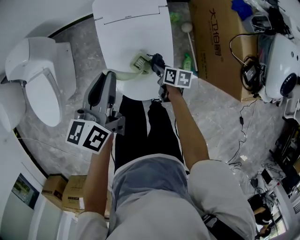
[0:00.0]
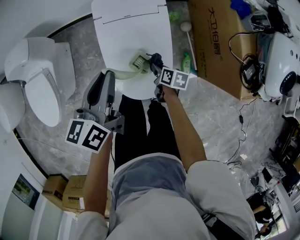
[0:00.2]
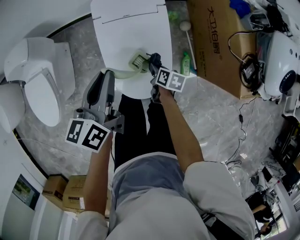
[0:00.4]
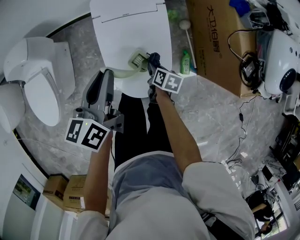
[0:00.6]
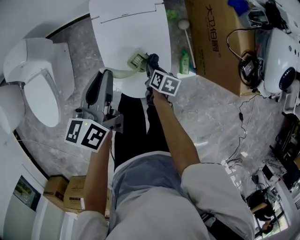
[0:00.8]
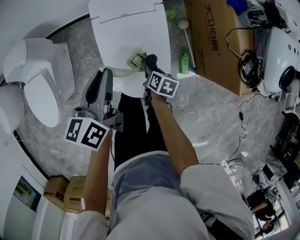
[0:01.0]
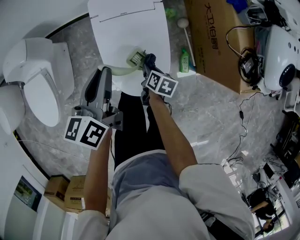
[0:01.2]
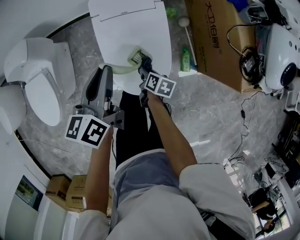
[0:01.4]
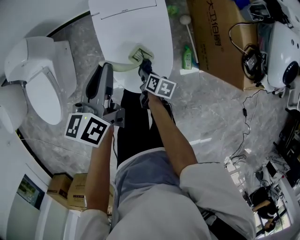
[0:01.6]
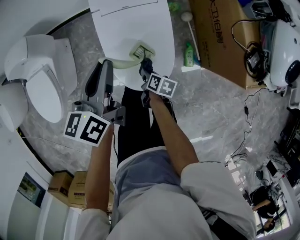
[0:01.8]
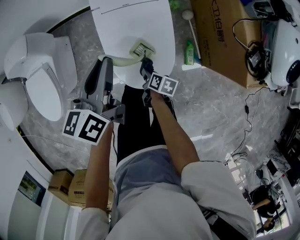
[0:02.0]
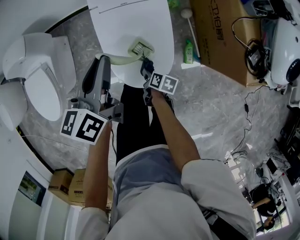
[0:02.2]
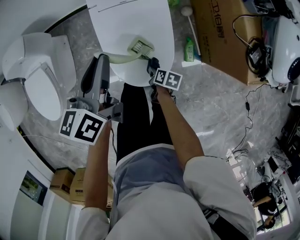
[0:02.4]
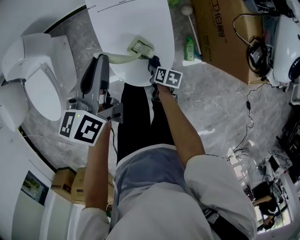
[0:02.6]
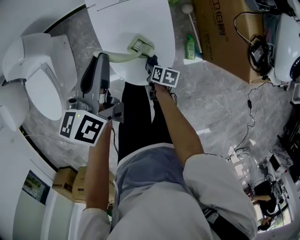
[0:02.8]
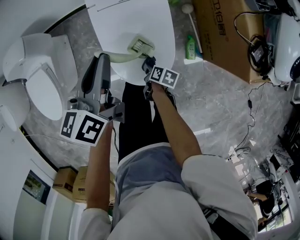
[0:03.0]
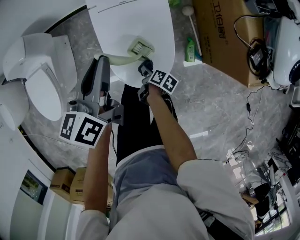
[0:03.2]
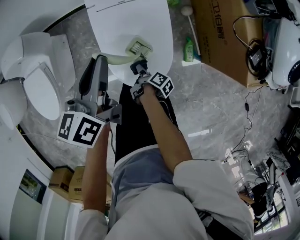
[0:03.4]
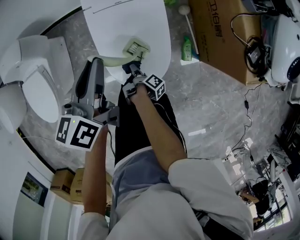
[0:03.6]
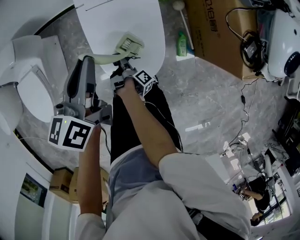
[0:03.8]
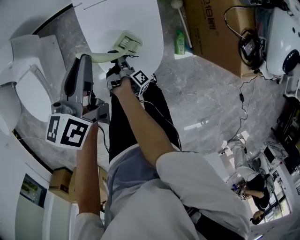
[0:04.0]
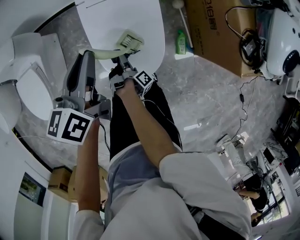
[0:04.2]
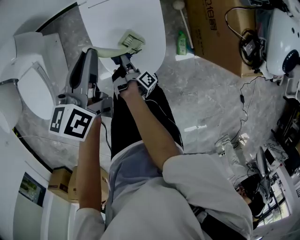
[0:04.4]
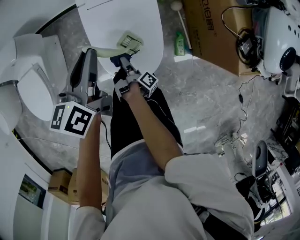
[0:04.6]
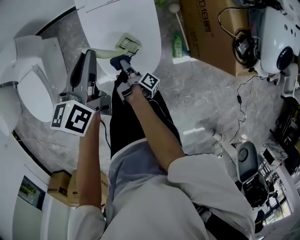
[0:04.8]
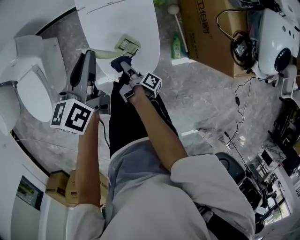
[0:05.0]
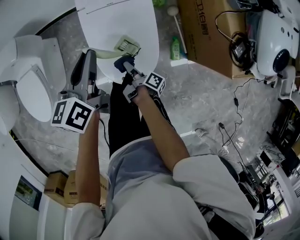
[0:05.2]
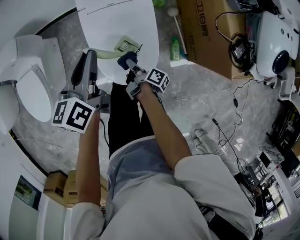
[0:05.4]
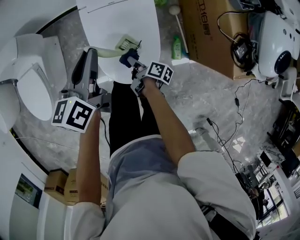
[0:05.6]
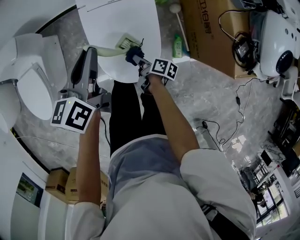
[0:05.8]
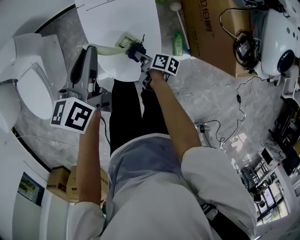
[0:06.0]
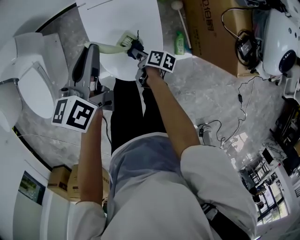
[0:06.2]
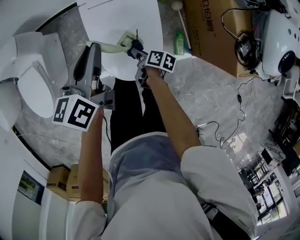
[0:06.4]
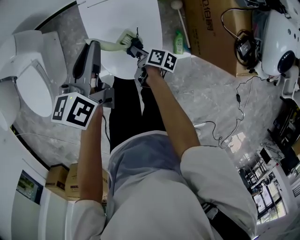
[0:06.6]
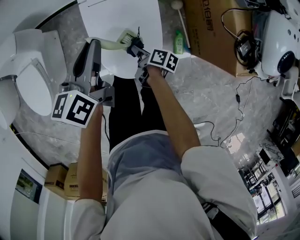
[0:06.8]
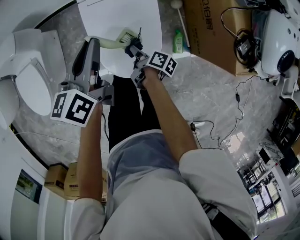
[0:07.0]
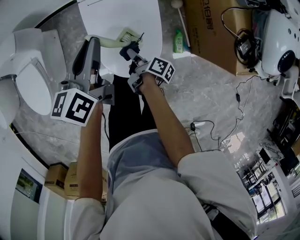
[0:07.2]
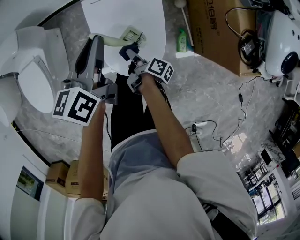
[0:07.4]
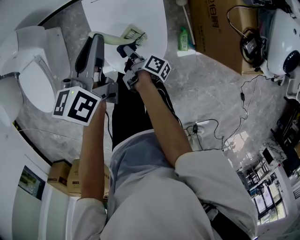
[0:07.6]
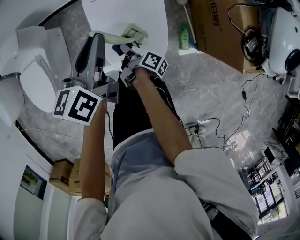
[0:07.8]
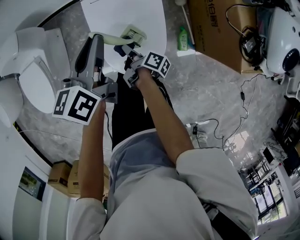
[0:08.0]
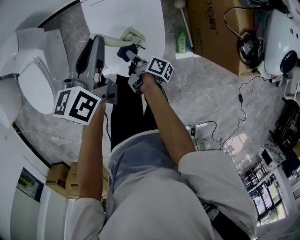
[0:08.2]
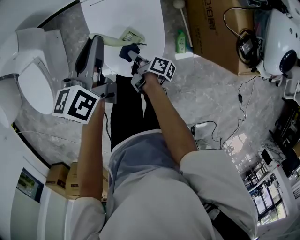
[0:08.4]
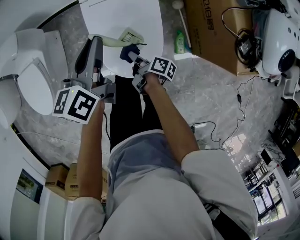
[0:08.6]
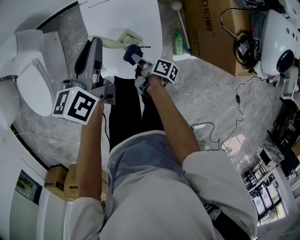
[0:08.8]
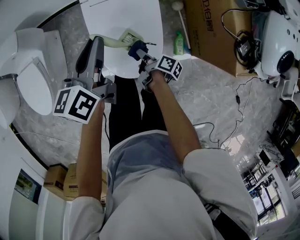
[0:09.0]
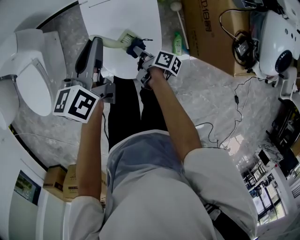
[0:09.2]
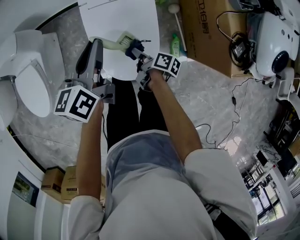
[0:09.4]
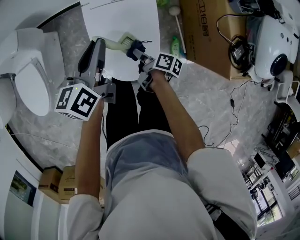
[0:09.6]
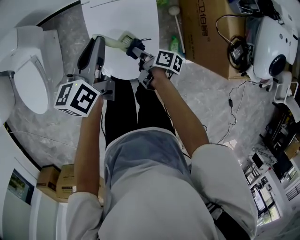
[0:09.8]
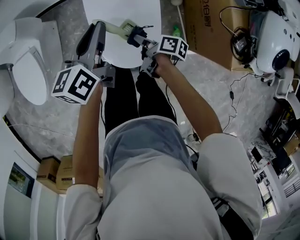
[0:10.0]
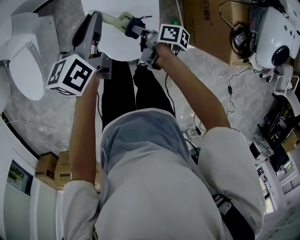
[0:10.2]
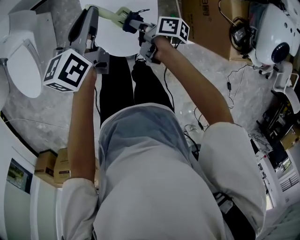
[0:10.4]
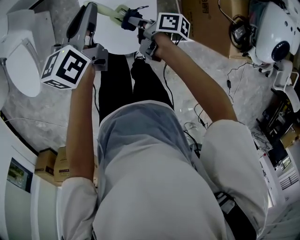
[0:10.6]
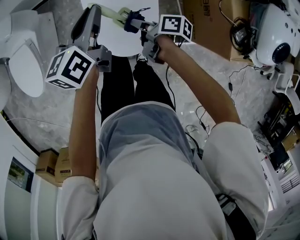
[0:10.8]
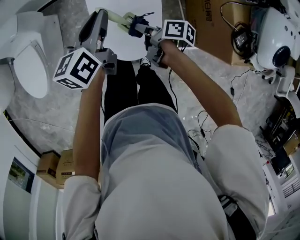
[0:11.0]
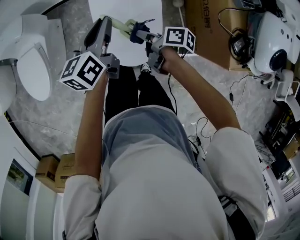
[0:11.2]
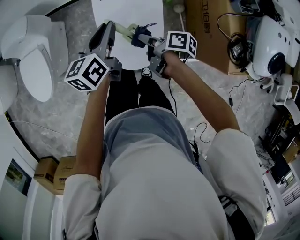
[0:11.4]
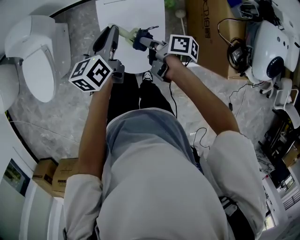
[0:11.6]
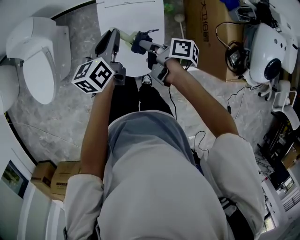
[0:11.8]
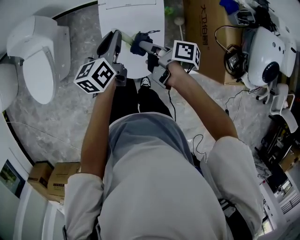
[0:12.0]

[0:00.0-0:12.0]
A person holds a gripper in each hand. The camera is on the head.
0:00.0 to 0:01.6: The right gripper is displaced to the left and backward by approximately 10 cm.
0:01.6 to 0:03.0: The right gripper travels downward by about 5 cm.
0:03.0 to 0:04.4: The right gripper moves to the left, approximately 5 cm, and twists some 60 degrees clockwise, seen from behind.
0:04.4 to 0:06.0: The right gripper is displaced to the right by about 10 cm, and rolls counterclockwise, seen from behind, by approximately 50 degrees.
0:06.0 to 0:07.6: The right gripper moves to the left, some 5 cm, and changes its angle by about 30 degrees.
0:07.6 to 0:09.0: The right gripper is displaced to the right by some 5 cm.
0:09.0 to 0:10.4: The right gripper travels upward by roughly 10 cm, and turns by roughly 20 degrees.
0:10.4 to 0:12.0: The right gripper shifts about 15 cm upward.

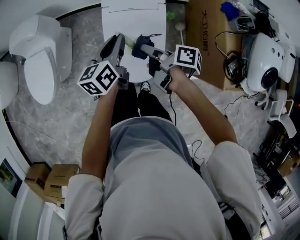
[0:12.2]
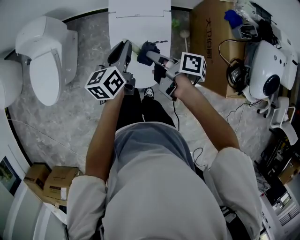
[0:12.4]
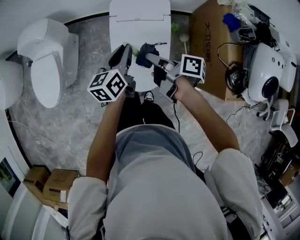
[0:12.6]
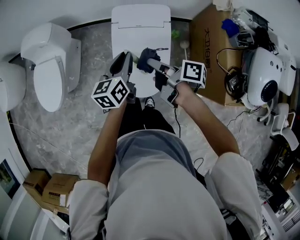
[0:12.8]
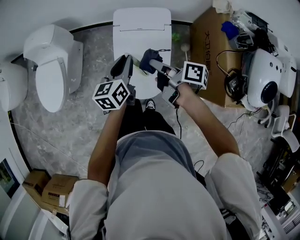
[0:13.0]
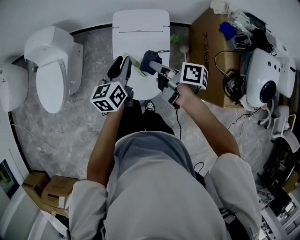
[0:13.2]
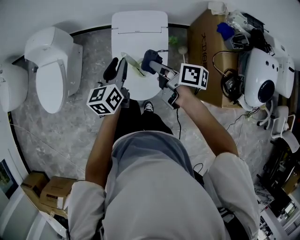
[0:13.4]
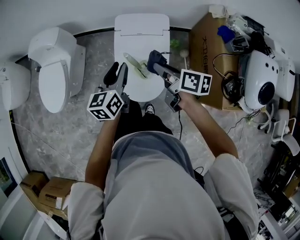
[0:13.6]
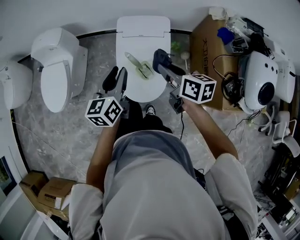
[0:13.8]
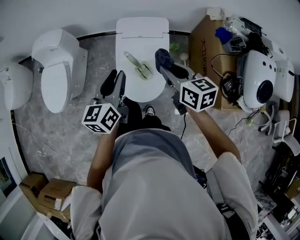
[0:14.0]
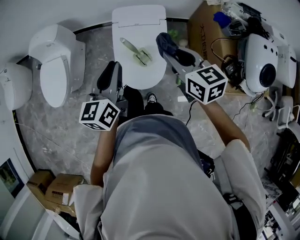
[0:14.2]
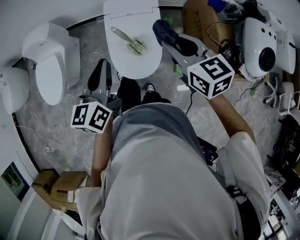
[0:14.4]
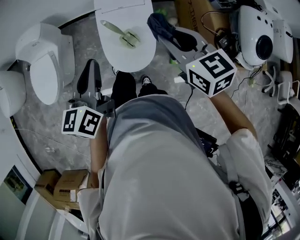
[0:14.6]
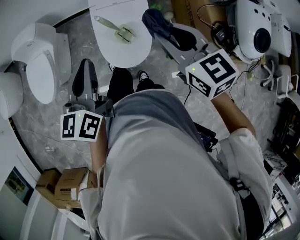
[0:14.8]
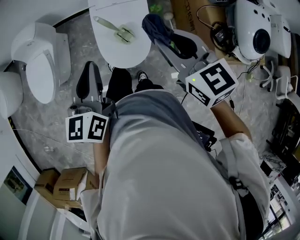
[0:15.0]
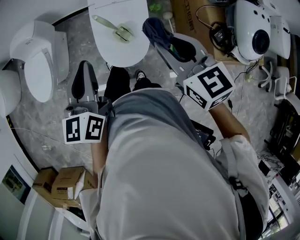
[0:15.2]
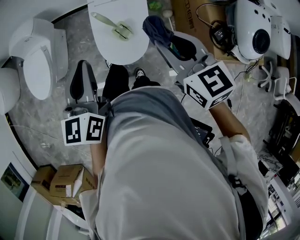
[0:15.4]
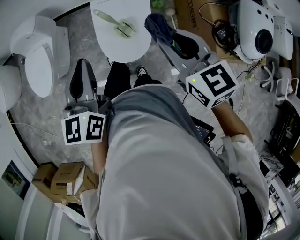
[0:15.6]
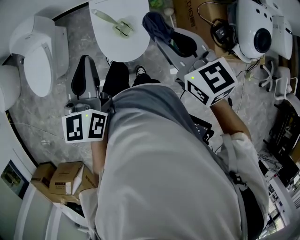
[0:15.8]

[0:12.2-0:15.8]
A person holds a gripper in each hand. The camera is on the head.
0:12.2 to 0:14.0: The right gripper is displaced upward by about 15 cm, and twists roughly 60 degrees counterclockwise, seen from behind. Meanwhile the left gripper heads upward and backward, covering approximately 15 cm.
0:14.0 to 0:15.8: The grippers both shift backward and upward by about 15 cm.

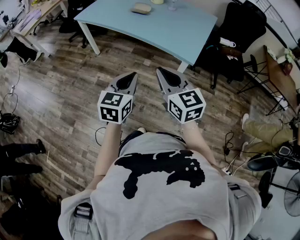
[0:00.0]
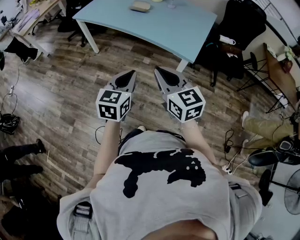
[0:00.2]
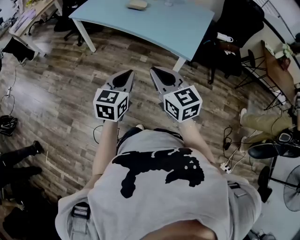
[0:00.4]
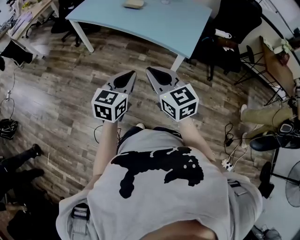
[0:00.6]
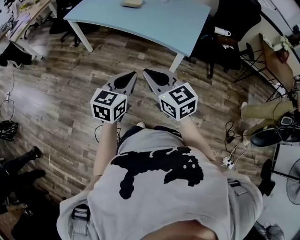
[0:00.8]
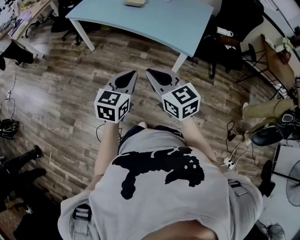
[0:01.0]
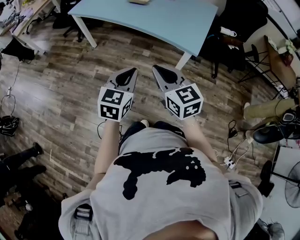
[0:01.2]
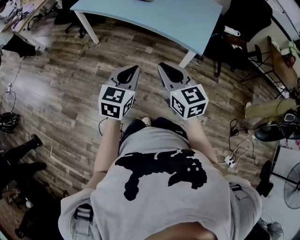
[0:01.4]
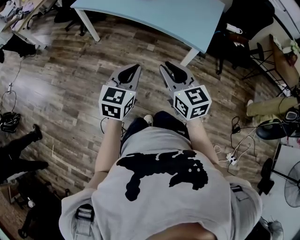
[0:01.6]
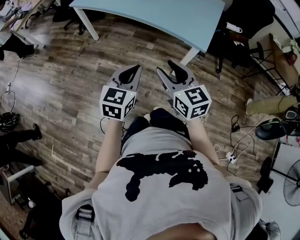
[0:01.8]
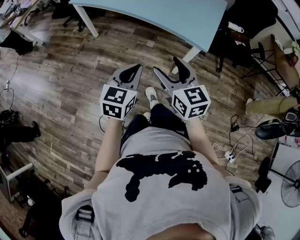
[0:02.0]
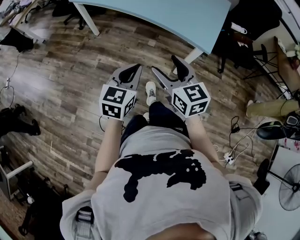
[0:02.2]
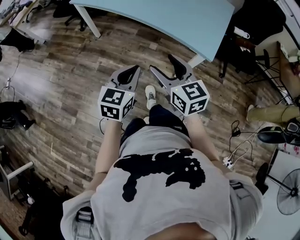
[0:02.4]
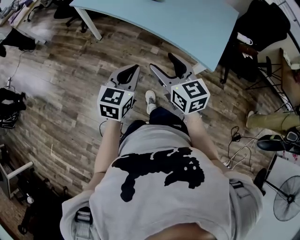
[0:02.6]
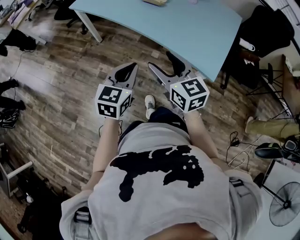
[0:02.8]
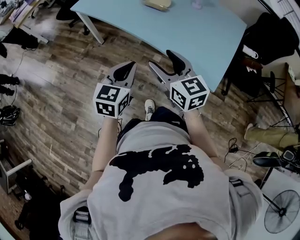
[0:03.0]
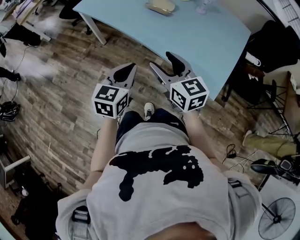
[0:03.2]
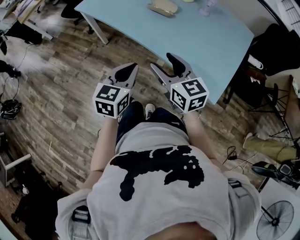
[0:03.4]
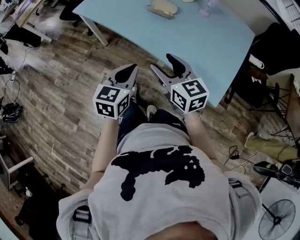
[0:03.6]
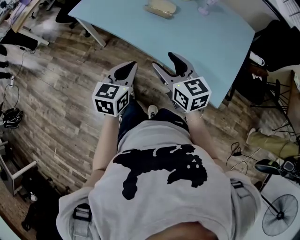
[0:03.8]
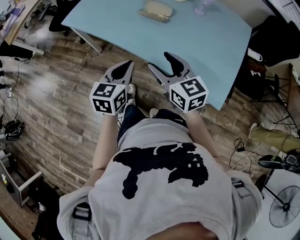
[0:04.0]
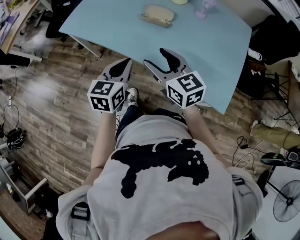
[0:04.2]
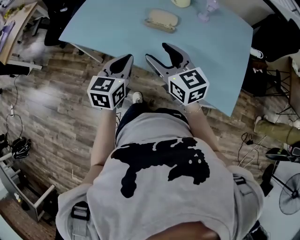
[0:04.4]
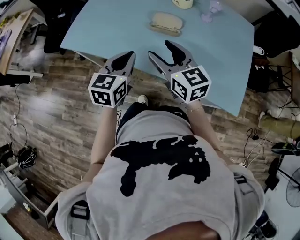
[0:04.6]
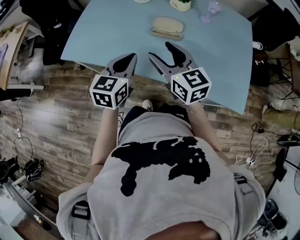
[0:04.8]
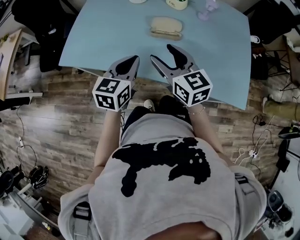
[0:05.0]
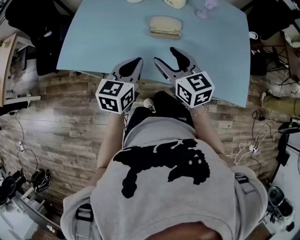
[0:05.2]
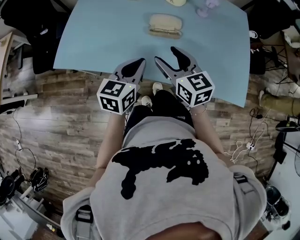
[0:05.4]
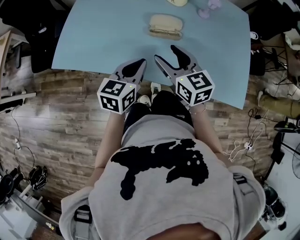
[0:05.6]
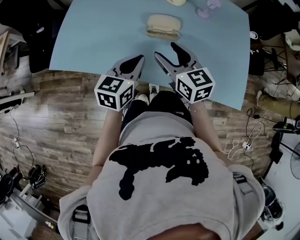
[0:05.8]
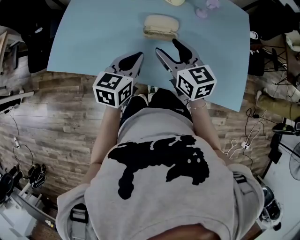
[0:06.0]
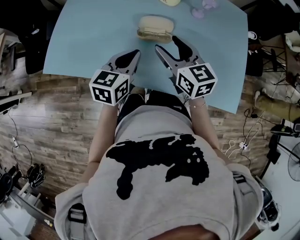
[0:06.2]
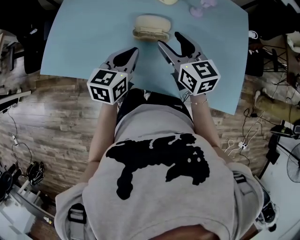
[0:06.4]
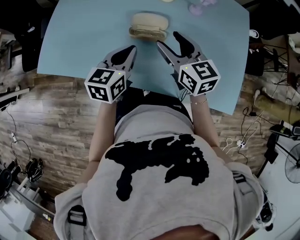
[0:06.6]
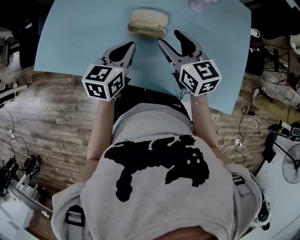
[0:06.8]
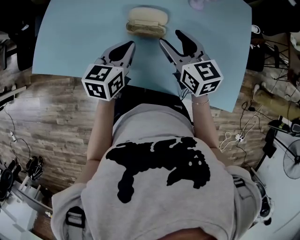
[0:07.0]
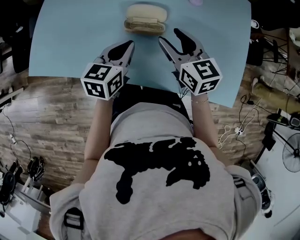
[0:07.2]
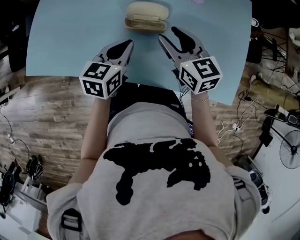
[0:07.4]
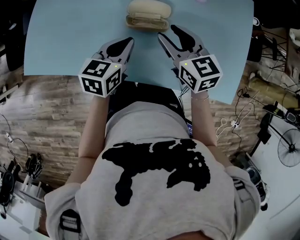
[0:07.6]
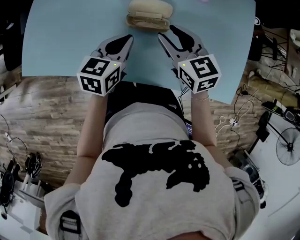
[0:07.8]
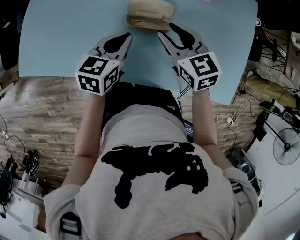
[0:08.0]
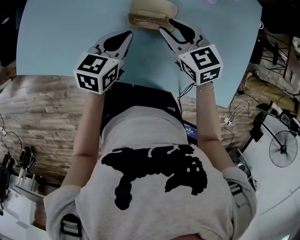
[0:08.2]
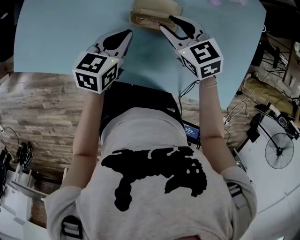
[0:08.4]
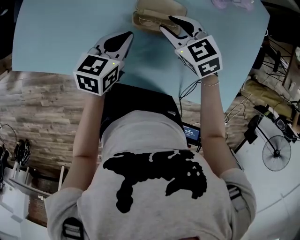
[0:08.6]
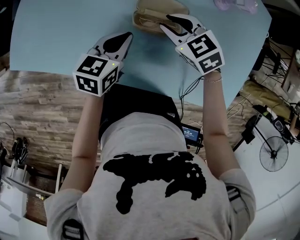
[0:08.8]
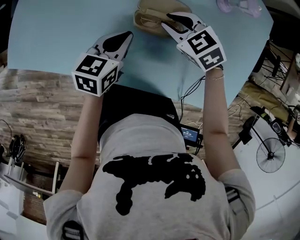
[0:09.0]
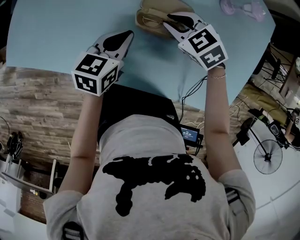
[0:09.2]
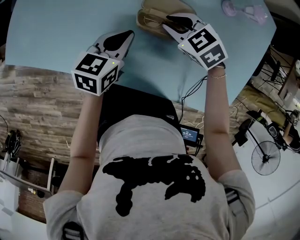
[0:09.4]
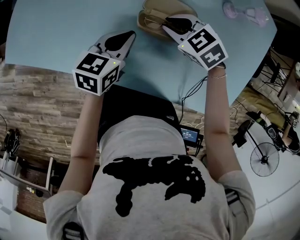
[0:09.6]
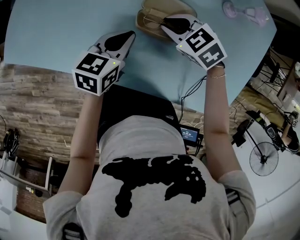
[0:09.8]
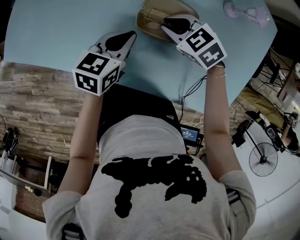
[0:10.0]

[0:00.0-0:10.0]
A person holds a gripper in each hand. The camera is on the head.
0:00.0 to 0:01.4: The right gripper ends up some 5 cm from where it was.
0:01.4 to 0:02.8: The grippers both shift forward by some 20 cm. The right gripper opens.
0:02.8 to 0:04.2: The grippers both shift forward by about 25 cm.
0:04.2 to 0:05.8: Both grippers move forward, about 15 cm. The right gripper rotates approximately 20 degrees, while the left gripper rotates some 20 degrees.
0:05.8 to 0:07.2: The left gripper shifts roughly 5 cm forward. Meanwhile the right gripper heads to the right and forward, covering roughly 10 cm.
0:07.2 to 0:08.6: The right gripper travels downward by about 10 cm, and rotates some 30 degrees. The left gripper moves downward, approximately 5 cm.
0:08.6 to 0:10.0: The right gripper moves downward, roughly 5 cm, and changes its angle by some 20 degrees.
